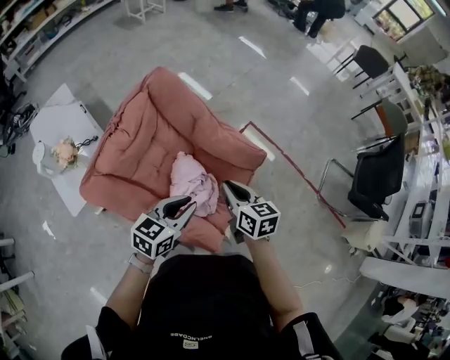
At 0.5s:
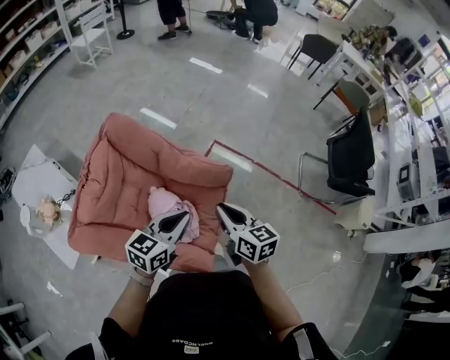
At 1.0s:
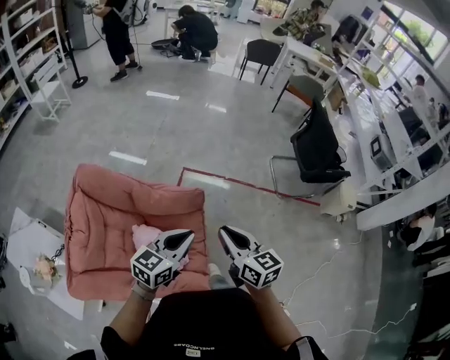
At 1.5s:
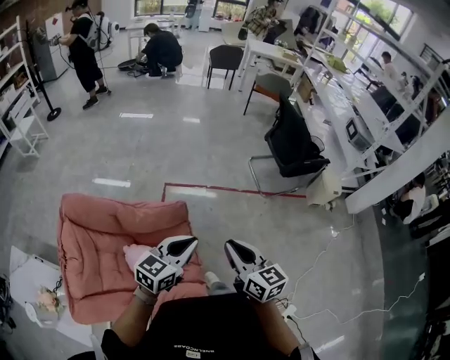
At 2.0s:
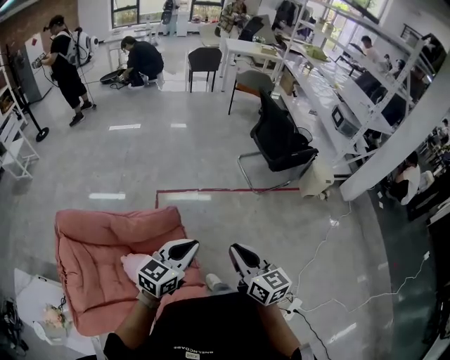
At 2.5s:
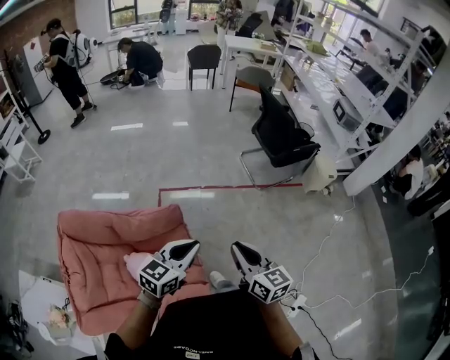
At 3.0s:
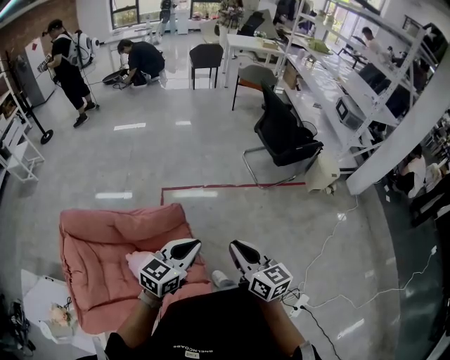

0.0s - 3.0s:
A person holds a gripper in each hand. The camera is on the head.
0.0s - 1.5s: The left gripper changes place by roughly 25 cm, and changes its angle by roughly 40 degrees. Meanwhile the right gripper changes place by approximately 30 cm, and rotates some 40 degrees.
1.5s - 3.0s: Both grippers travel together to the right, approximately 5 cm.

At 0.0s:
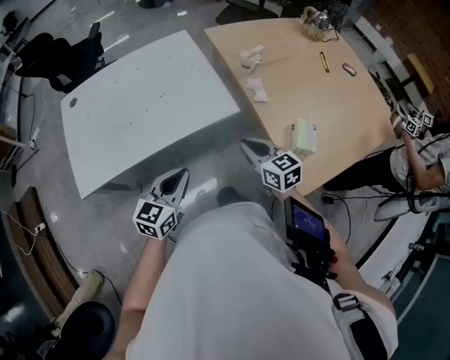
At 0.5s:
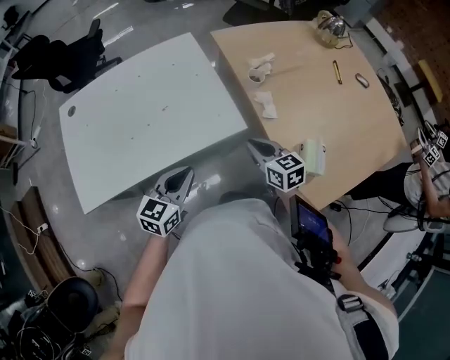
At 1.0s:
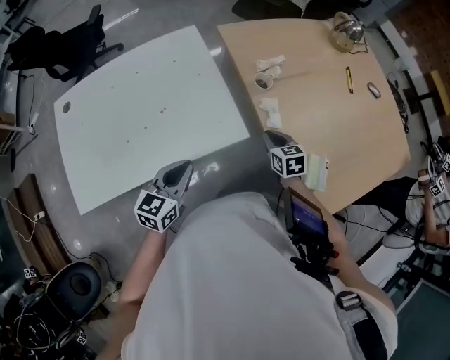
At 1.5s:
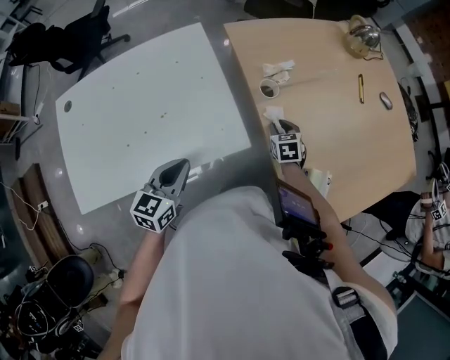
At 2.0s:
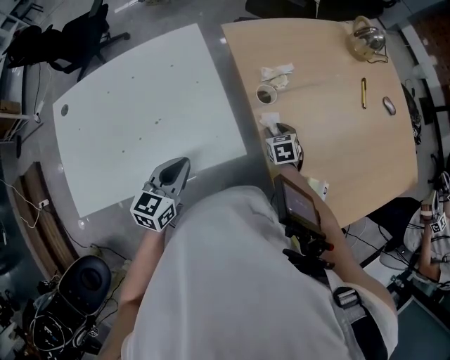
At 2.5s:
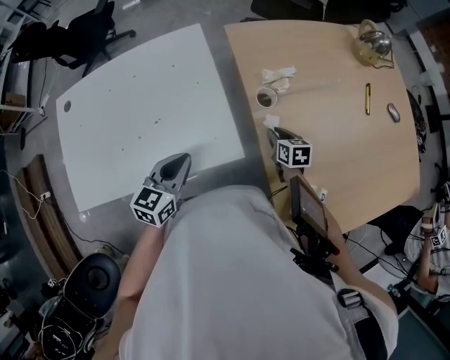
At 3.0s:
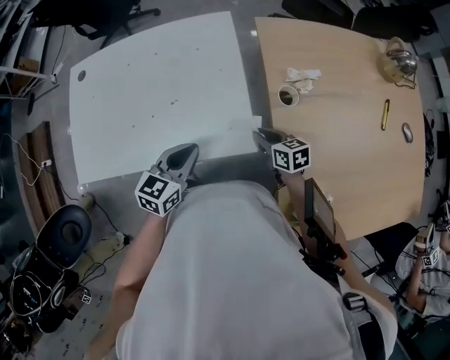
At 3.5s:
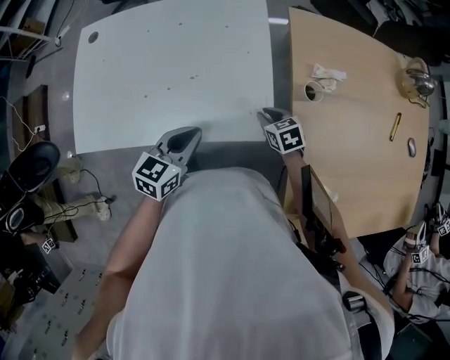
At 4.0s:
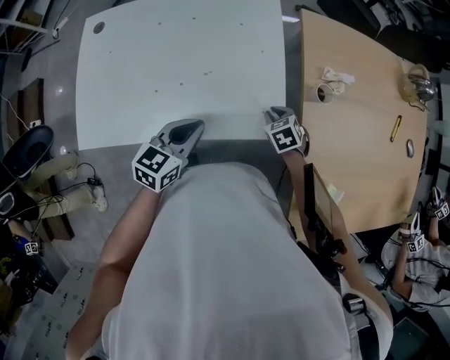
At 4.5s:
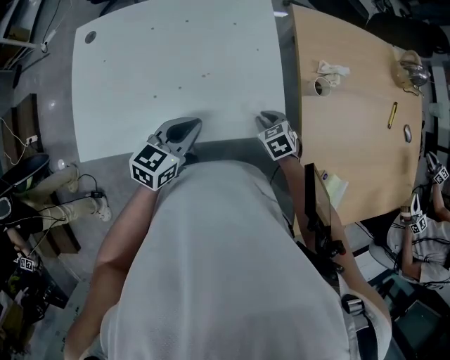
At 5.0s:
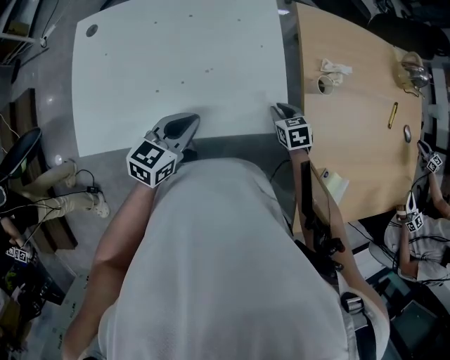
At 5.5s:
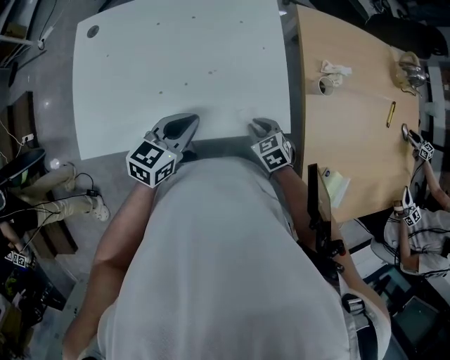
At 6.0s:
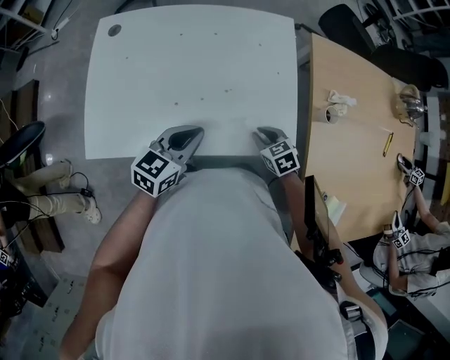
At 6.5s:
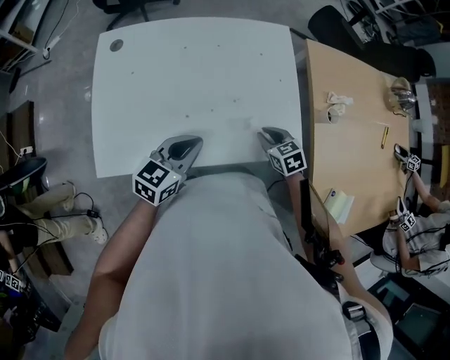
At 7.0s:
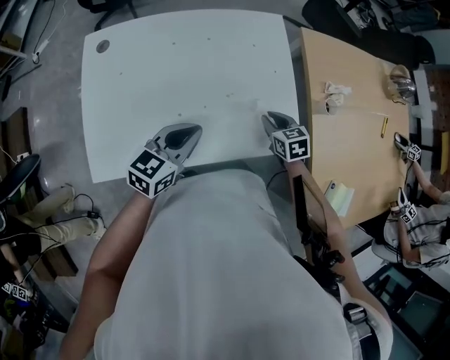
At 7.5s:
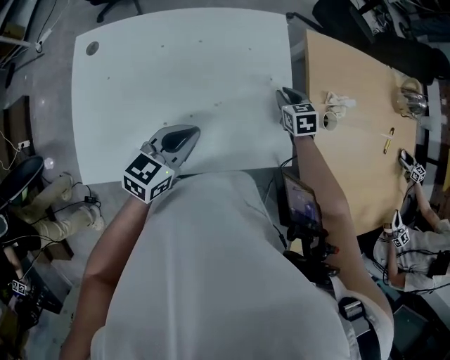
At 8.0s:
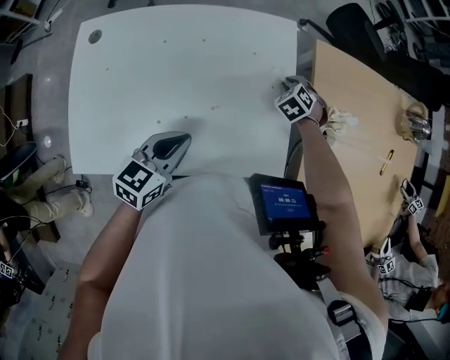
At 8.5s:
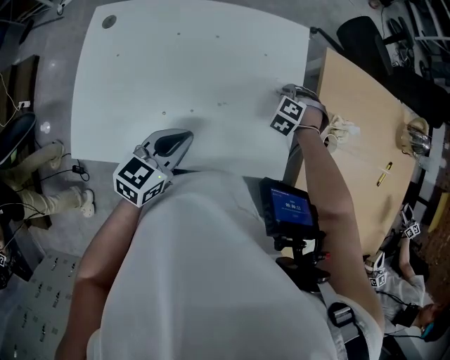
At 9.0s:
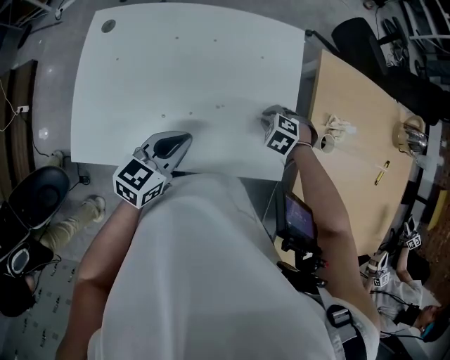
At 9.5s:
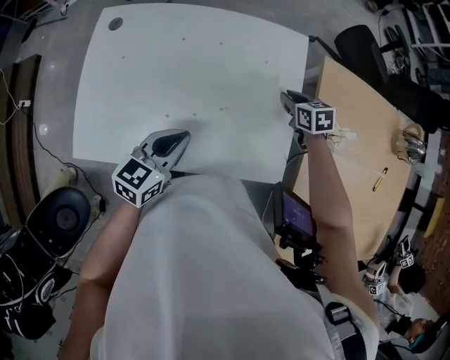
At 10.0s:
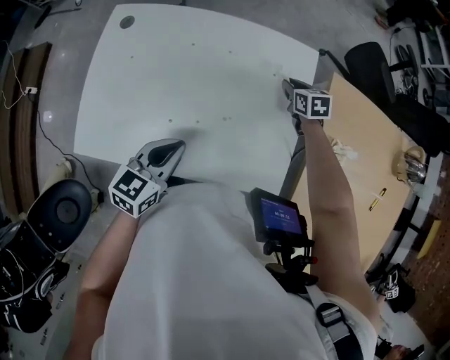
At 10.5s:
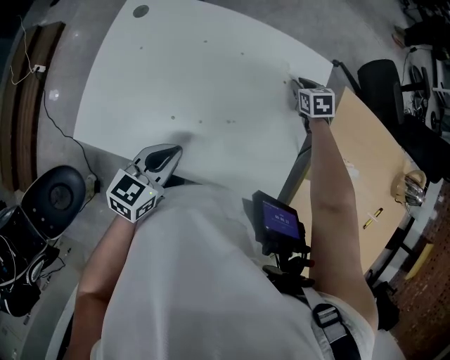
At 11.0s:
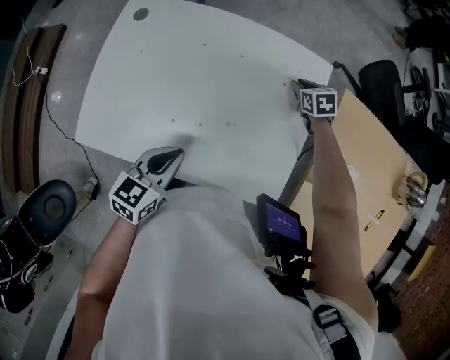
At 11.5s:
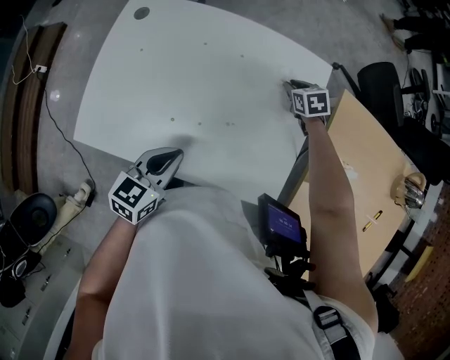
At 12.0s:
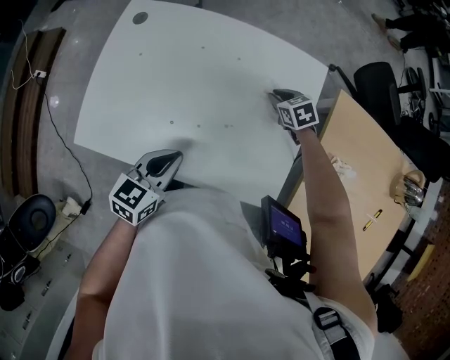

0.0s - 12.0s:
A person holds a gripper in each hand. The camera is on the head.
0.0s - 2.0s: The right gripper moves forward and downward, approximately 35 cm, tilts its fingers some 30 degrees downward, and opens up, while the left gripper moves forward, approximately 25 cm.
2.0s - 4.0s: The left gripper ends up roughly 10 cm from where it was. Meanwhile the right gripper moves some 20 cm, and turns by about 30 degrees.
4.0s - 6.0s: Both grippers move to the left, approximately 10 cm.
6.0s - 8.0s: The right gripper is displaced forward by about 25 cm, and swivels about 40 degrees, while the left gripper moves forward, roughly 5 cm.
8.0s - 10.0s: The right gripper changes place by approximately 10 cm, and swivels roughly 40 degrees.
10.0s - 12.0s: The right gripper heads to the left, covering some 5 cm, and turns by some 20 degrees.

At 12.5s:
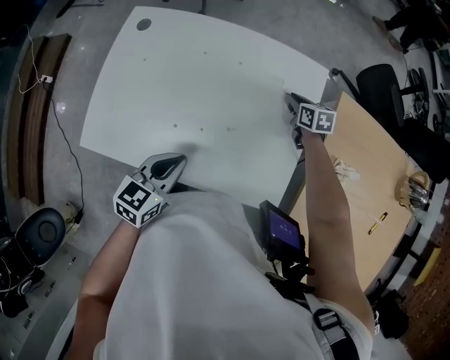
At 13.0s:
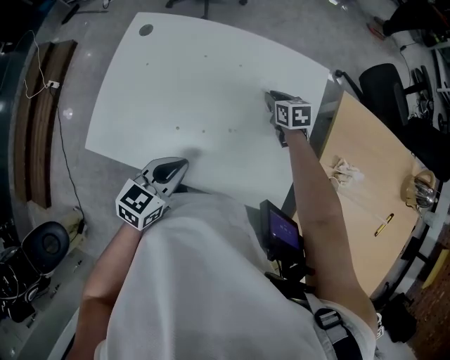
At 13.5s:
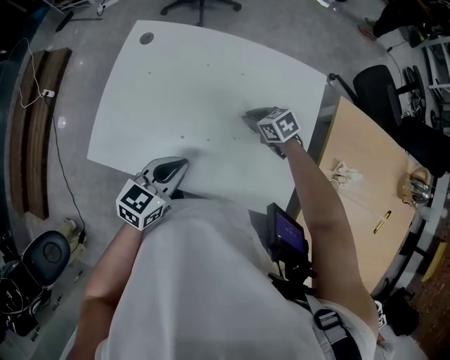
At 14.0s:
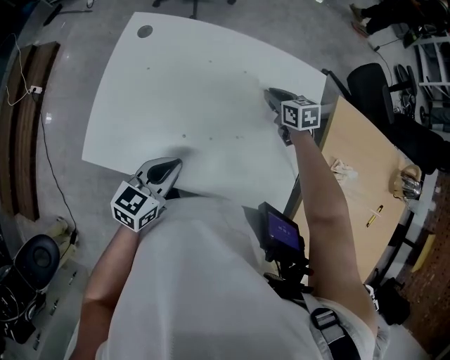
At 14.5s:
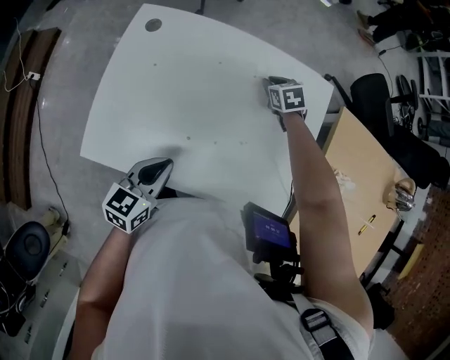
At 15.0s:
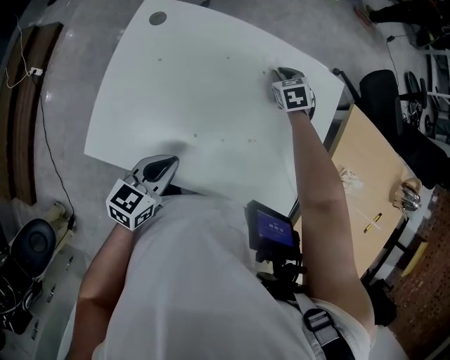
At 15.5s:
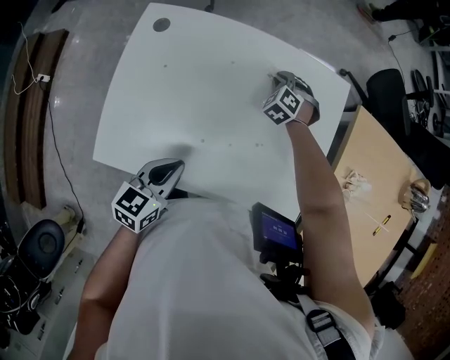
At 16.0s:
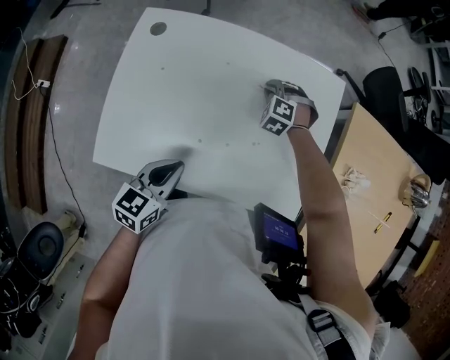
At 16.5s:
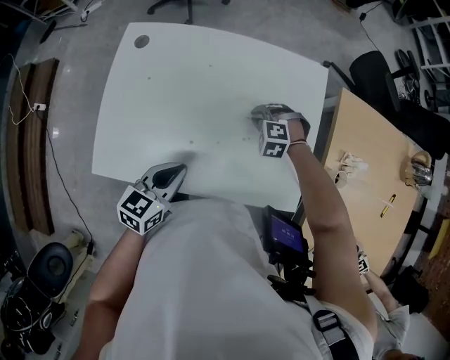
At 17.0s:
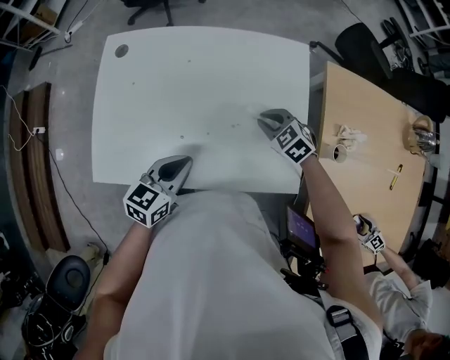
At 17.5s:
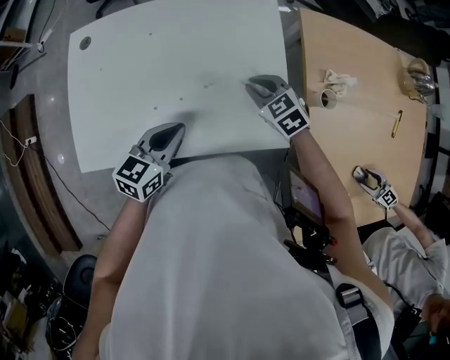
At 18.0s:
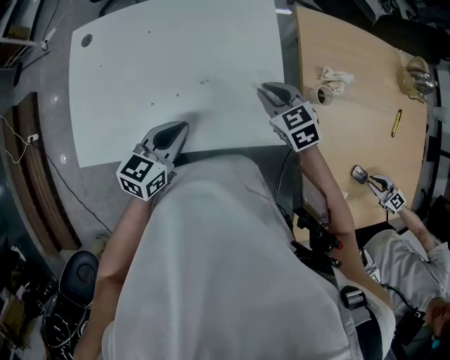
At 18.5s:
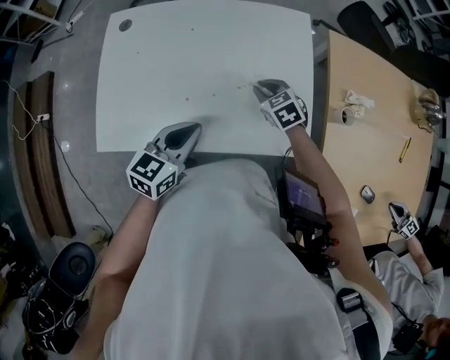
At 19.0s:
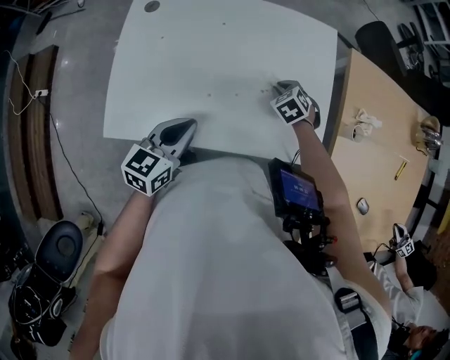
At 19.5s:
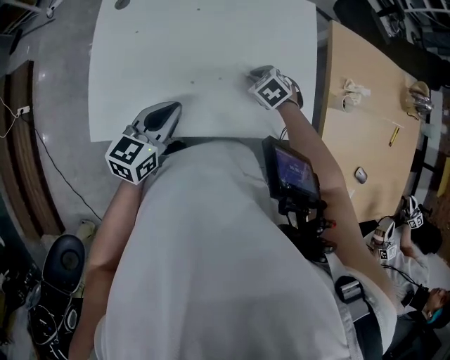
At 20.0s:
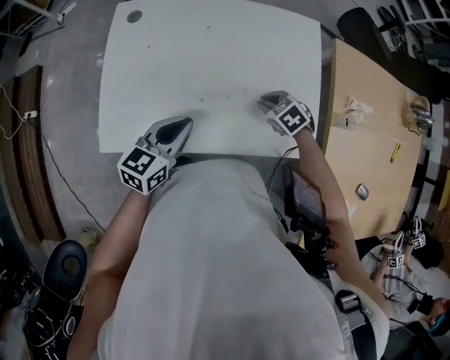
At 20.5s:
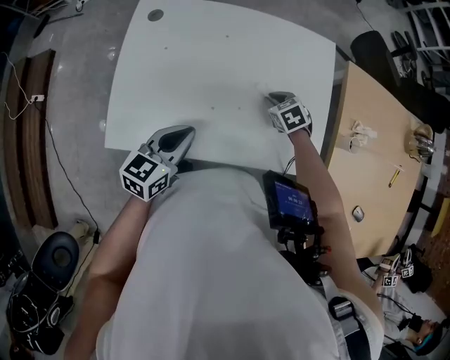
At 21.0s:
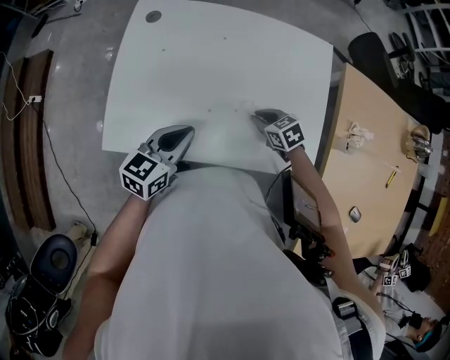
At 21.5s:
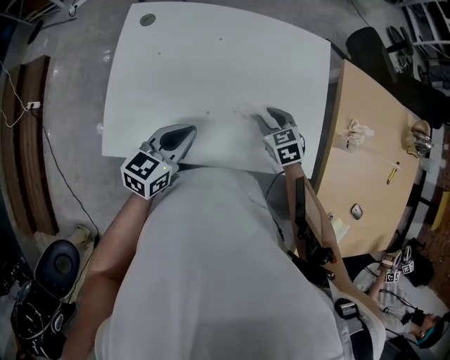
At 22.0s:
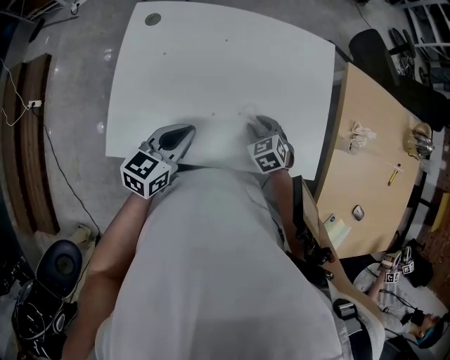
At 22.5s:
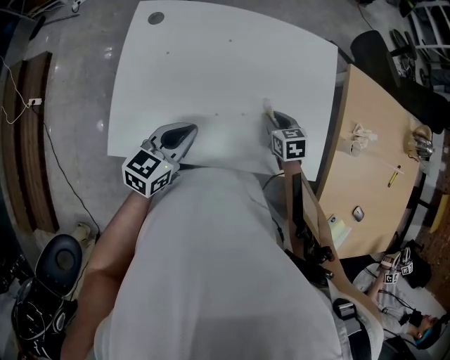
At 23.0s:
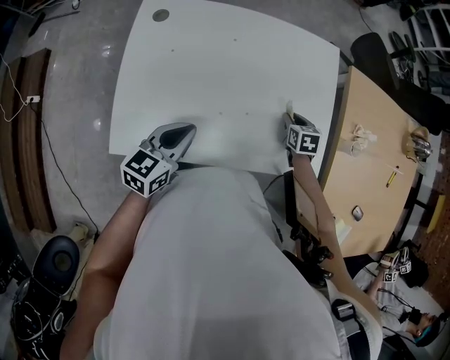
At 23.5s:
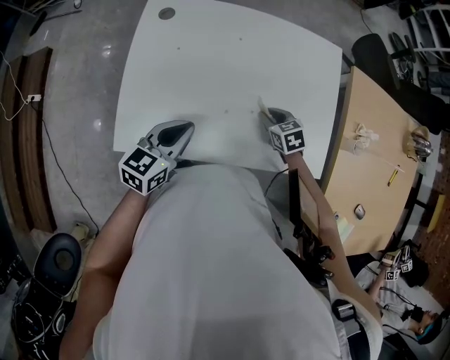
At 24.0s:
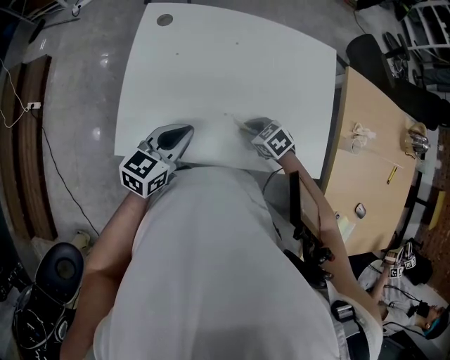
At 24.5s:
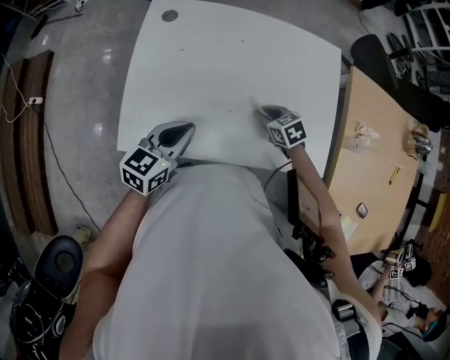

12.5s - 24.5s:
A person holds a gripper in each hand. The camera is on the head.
12.5s - 14.5s: The left gripper moves to the left, about 10 cm; the right gripper moves to the left and forward, approximately 15 cm, and swivels some 20 degrees.
14.5s - 16.5s: The right gripper travels backward by approximately 15 cm, and rotates around the line of its fingers by approximately 60 degrees, counterclockwise from behind.
16.5s - 18.5s: The left gripper shifts some 5 cm to the right; the right gripper goes roughly 5 cm backward, travels to the right and back again, about 15 cm each way, and rolls clockwise, seen from behind, by approximately 60 degrees.
18.5s - 20.5s: The left gripper moves to the left, some 10 cm; the right gripper shifts by about 5 cm.
20.5s - 22.5s: The right gripper rotates some 20 degrees.
22.5s - 24.5s: The left gripper changes place by roughly 5 cm.
